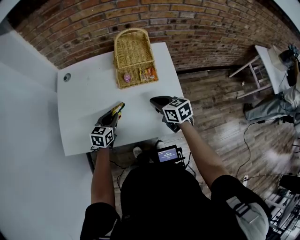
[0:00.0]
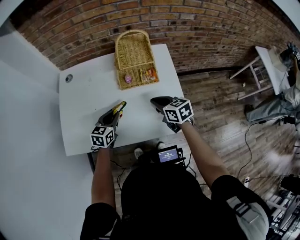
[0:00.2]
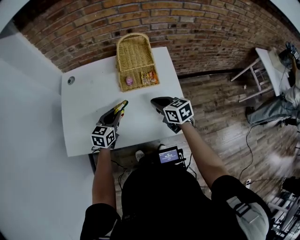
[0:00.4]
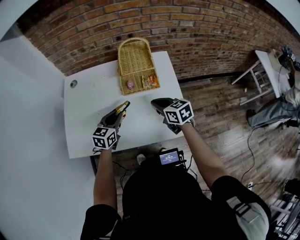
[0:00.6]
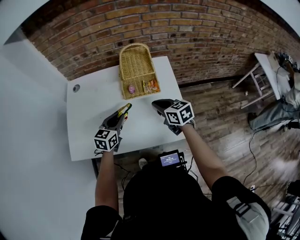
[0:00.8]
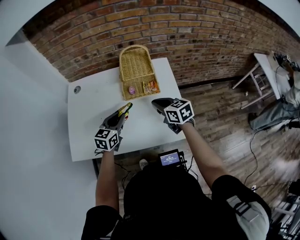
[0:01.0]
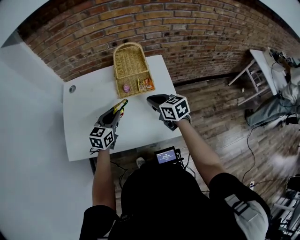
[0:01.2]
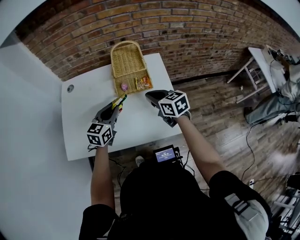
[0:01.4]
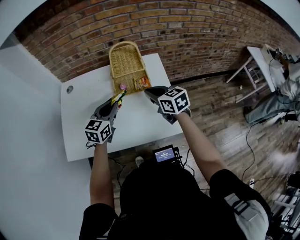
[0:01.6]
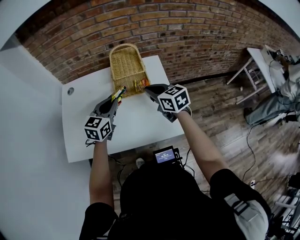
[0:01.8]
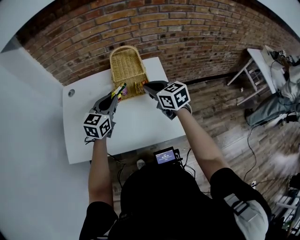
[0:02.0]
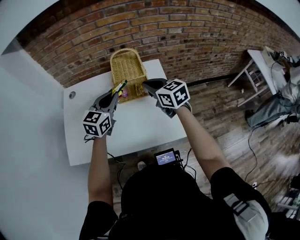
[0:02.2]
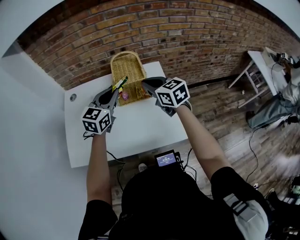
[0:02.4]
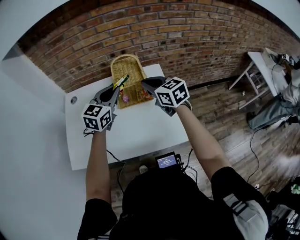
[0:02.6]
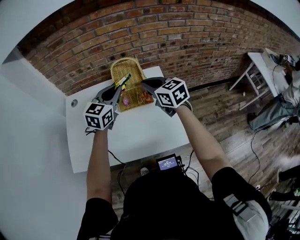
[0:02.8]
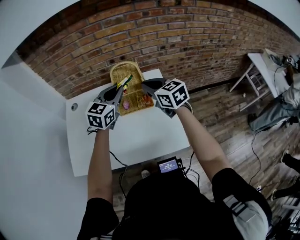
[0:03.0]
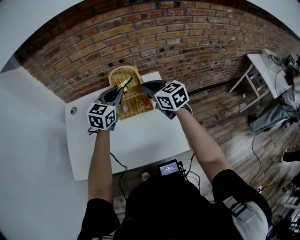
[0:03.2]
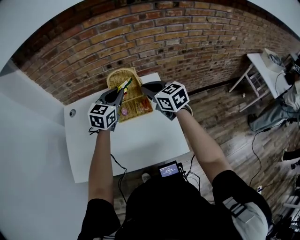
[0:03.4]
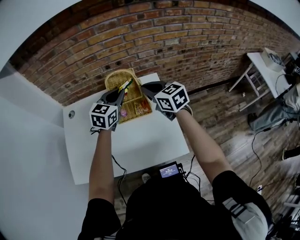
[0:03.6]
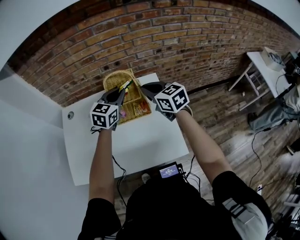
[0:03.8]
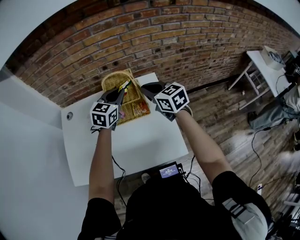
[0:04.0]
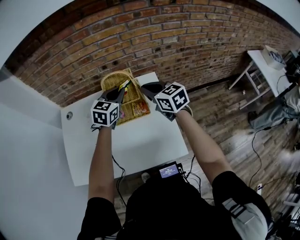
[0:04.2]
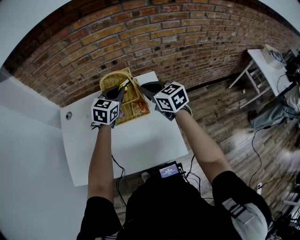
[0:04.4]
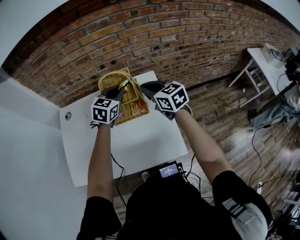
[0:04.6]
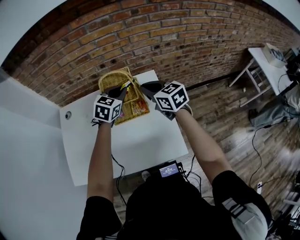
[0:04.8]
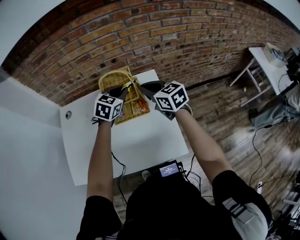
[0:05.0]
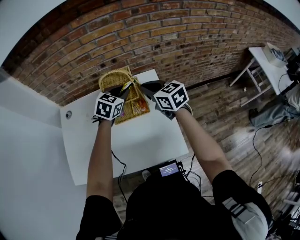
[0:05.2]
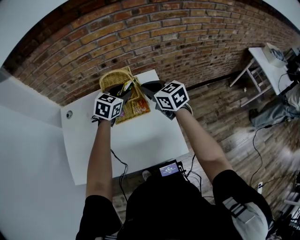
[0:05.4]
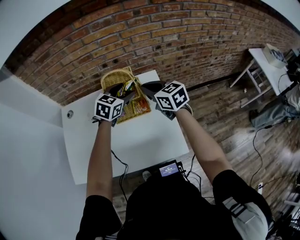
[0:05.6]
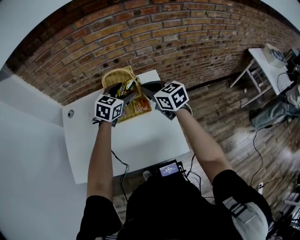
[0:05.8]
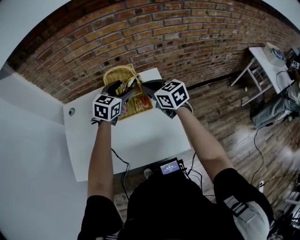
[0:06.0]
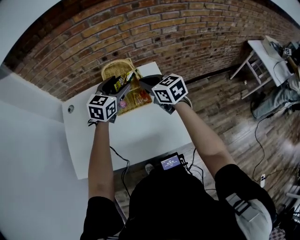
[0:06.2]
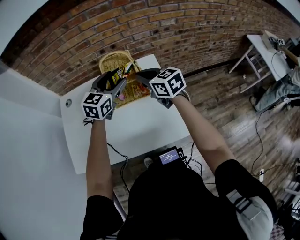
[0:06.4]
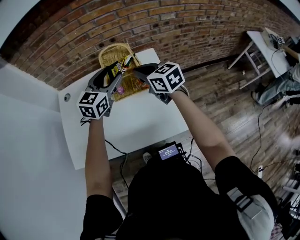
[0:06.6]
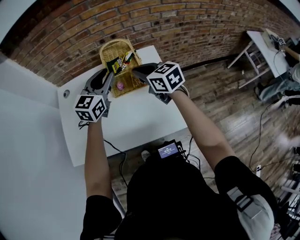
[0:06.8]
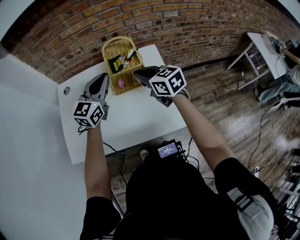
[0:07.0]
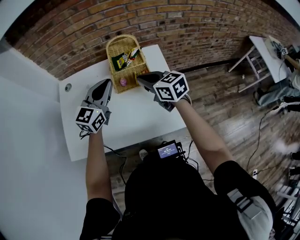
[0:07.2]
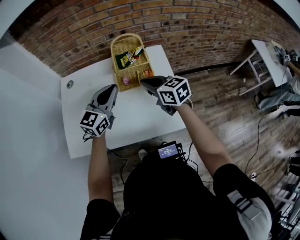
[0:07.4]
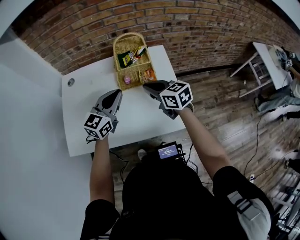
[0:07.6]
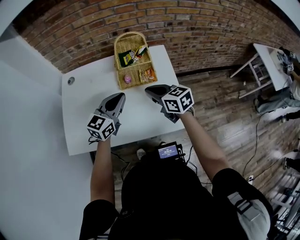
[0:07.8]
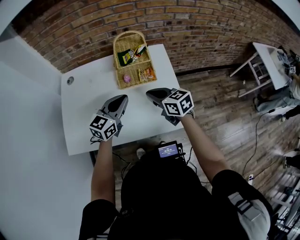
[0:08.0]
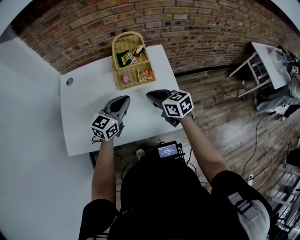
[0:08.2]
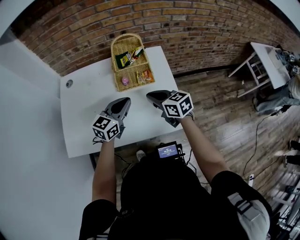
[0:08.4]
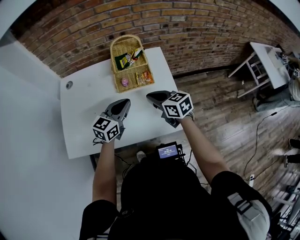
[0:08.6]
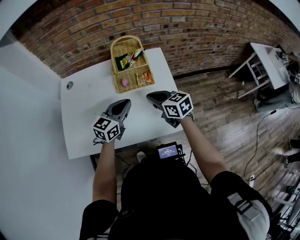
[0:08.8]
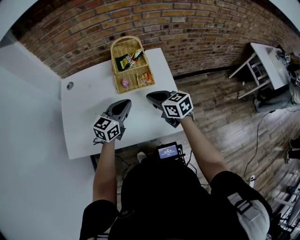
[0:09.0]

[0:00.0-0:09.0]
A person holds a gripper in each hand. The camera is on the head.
0:00.0 to 0:01.6: The left gripper is displaced upward by roughly 15 cm; the right gripper shifts approximately 10 cm upward.
0:01.6 to 0:03.0: The left gripper heads forward, upward and to the right, covering approximately 15 cm. Meanwhile the right gripper goes approximately 10 cm upward and forward.
0:03.0 to 0:04.4: The right gripper moves roughly 5 cm. Meanwhile the left gripper travels forward and downward by roughly 10 cm.
0:04.4 to 0:06.0: The left gripper opens.
0:06.0 to 0:07.6: The left gripper moves backward and to the left, some 20 cm, and closes its fingers; the right gripper goes roughly 15 cm backward, to the left and downward.
0:07.6 to 0:09.0: The left gripper heads downward, covering approximately 5 cm.

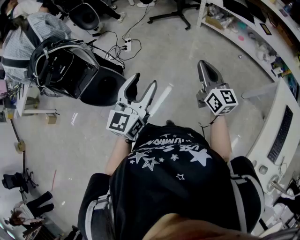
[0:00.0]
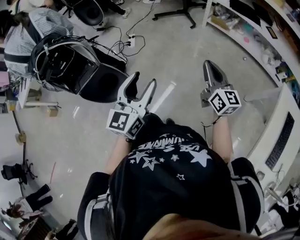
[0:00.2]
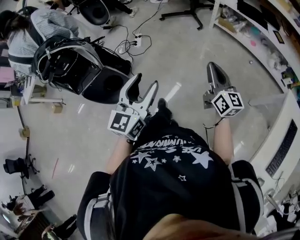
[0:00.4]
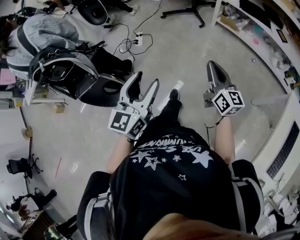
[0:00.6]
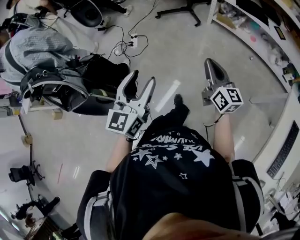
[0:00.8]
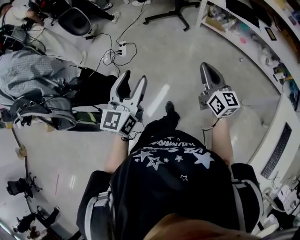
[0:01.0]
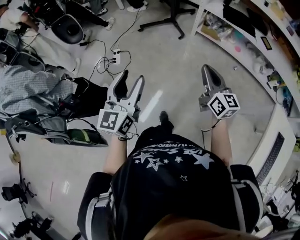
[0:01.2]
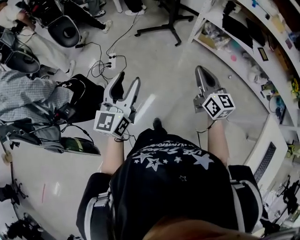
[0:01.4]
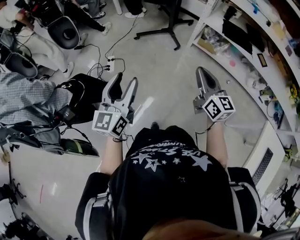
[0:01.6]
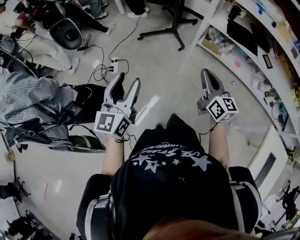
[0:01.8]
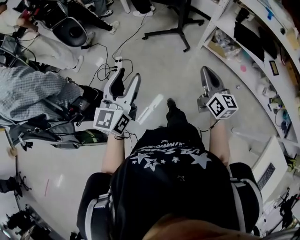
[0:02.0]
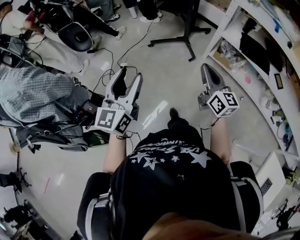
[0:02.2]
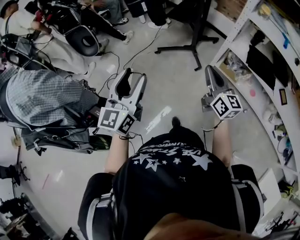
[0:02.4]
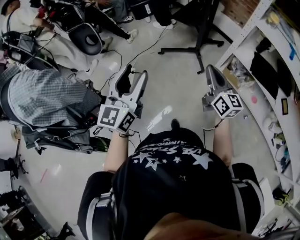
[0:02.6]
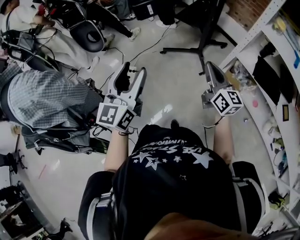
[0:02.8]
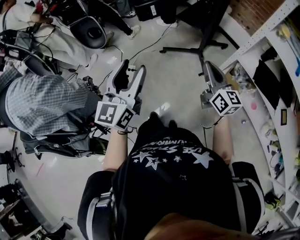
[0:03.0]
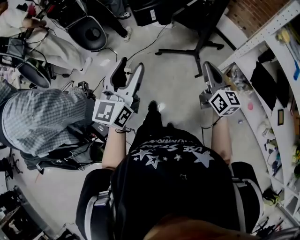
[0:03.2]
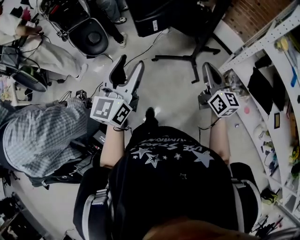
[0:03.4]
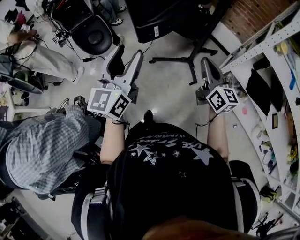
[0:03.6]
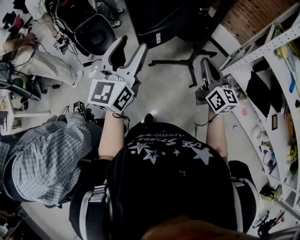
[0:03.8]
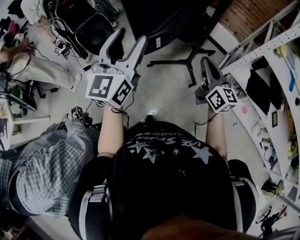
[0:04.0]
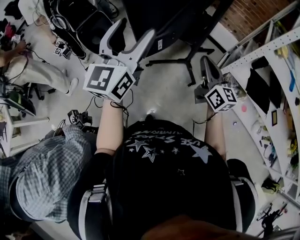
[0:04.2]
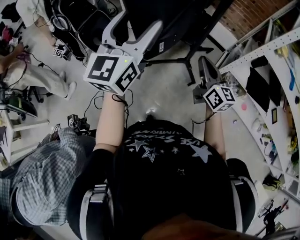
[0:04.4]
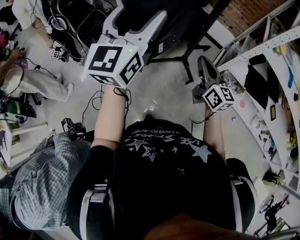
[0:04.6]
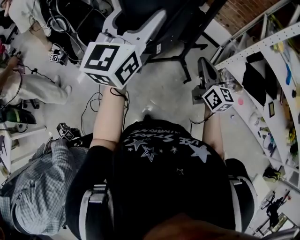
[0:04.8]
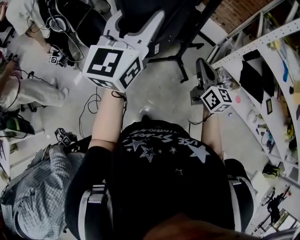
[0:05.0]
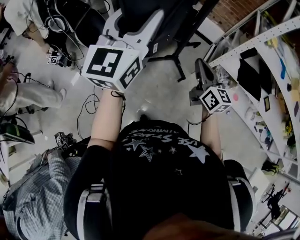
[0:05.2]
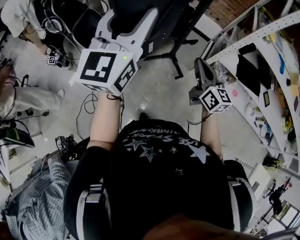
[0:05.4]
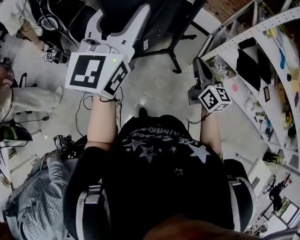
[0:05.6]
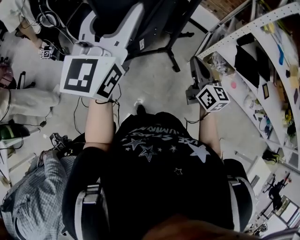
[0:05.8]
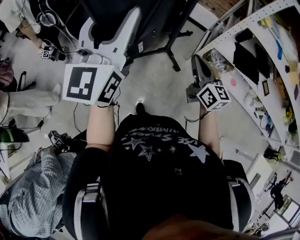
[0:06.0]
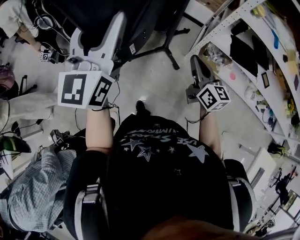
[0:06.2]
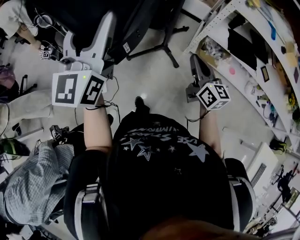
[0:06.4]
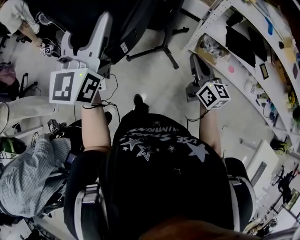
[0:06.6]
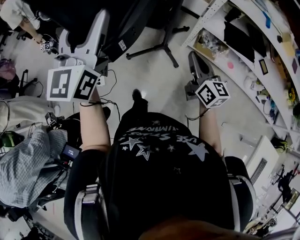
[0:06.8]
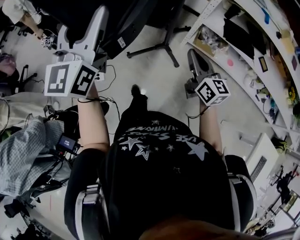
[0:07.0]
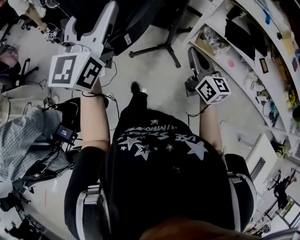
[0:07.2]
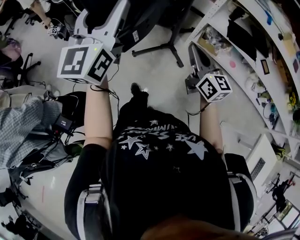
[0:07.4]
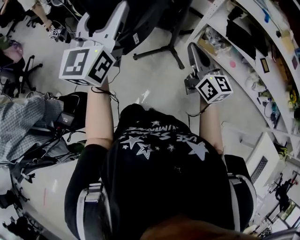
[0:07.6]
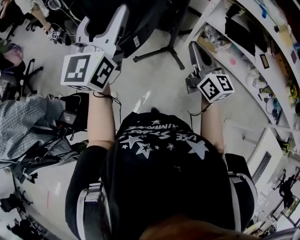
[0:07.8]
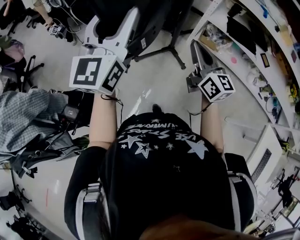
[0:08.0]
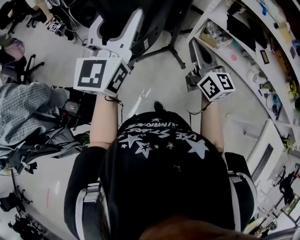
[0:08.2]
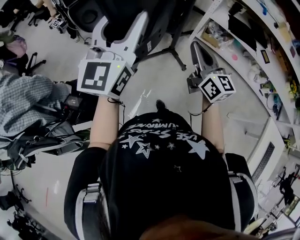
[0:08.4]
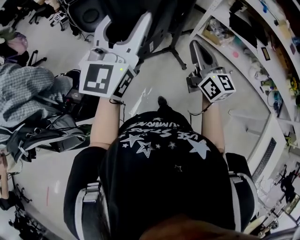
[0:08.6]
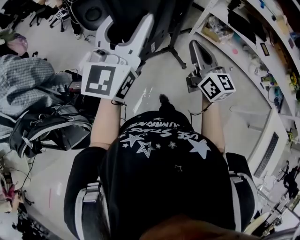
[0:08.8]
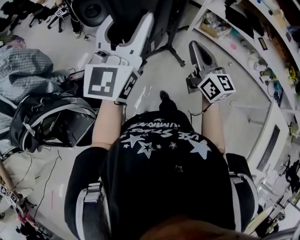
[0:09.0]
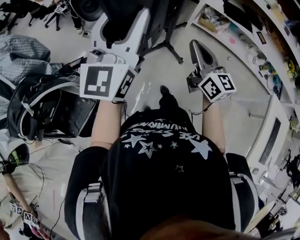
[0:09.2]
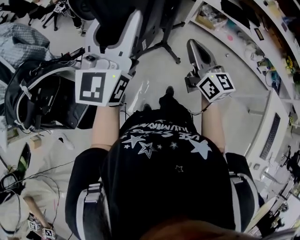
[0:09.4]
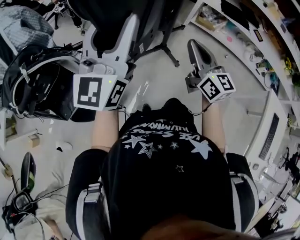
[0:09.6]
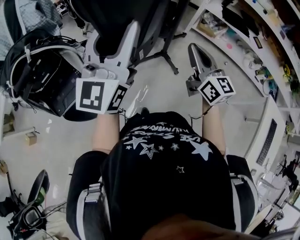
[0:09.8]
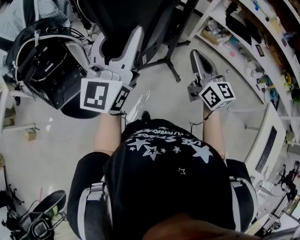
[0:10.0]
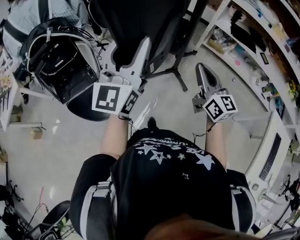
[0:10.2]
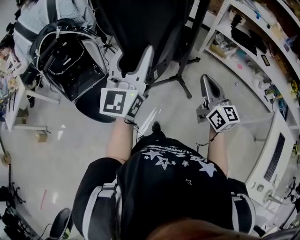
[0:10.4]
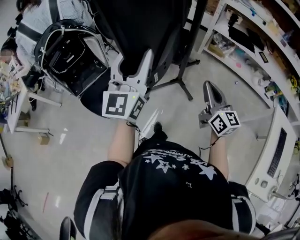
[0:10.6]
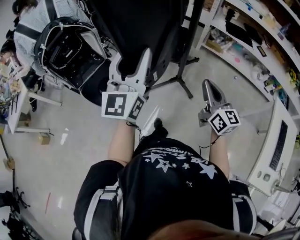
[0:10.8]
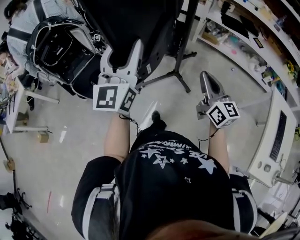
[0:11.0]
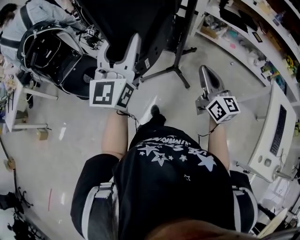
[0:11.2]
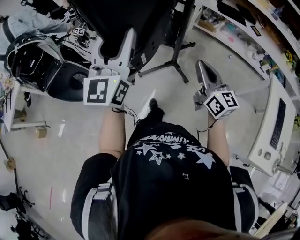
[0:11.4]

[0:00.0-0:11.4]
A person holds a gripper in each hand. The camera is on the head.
0:00.0 to 0:01.4: Both grippers travel together forward, some 30 cm.
0:01.4 to 0:02.8: The grippers both shift forward by roughly 35 cm.
0:02.8 to 0:04.2: Both grippers move forward, some 25 cm.
0:04.2 to 0:05.6: The right gripper shifts by approximately 5 cm; the left gripper closes its fingers.
0:05.6 to 0:07.2: The right gripper is displaced backward and to the right by some 25 cm. The left gripper heads backward, covering some 25 cm.
0:07.2 to 0:08.6: The left gripper is displaced backward by approximately 20 cm, while the right gripper is displaced backward and to the left by about 20 cm.
0:08.6 to 0:10.0: The right gripper heads backward, covering about 15 cm, while the left gripper moves backward and to the left, roughly 20 cm.
0:10.0 to 0:11.4: The grippers both shift backward by some 20 cm.

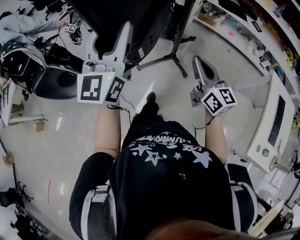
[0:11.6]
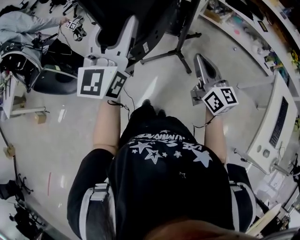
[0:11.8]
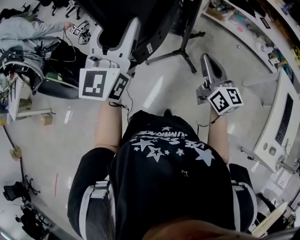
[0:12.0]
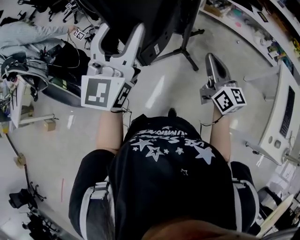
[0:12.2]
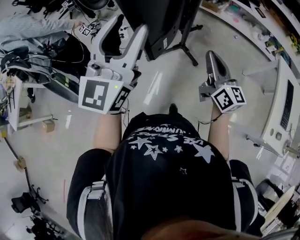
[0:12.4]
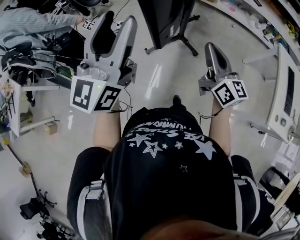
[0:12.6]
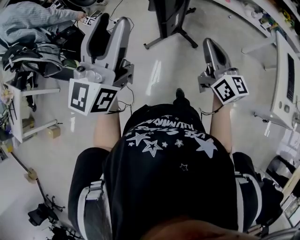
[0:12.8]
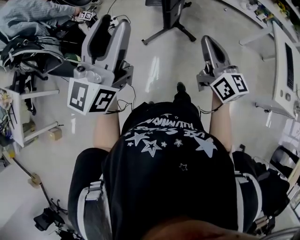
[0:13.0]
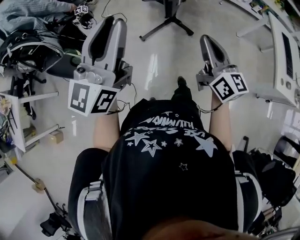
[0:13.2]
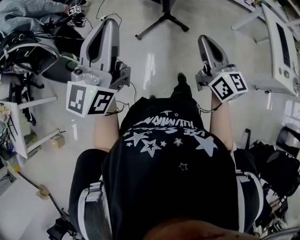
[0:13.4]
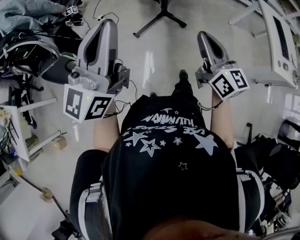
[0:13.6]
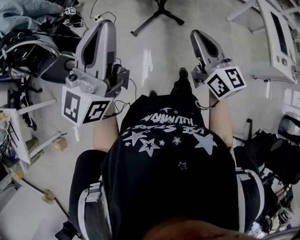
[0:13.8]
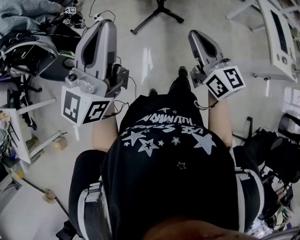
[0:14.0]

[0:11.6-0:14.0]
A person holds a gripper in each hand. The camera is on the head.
0:11.6 to 0:12.8: The right gripper shifts about 15 cm backward and to the left, while the left gripper travels to the left and backward by approximately 15 cm, and rotates roughly 20 degrees.
0:12.8 to 0:14.0: The left gripper travels backward by approximately 10 cm, and closes; the right gripper moves backward and to the left, roughly 15 cm.

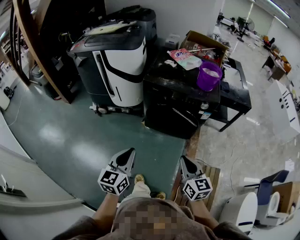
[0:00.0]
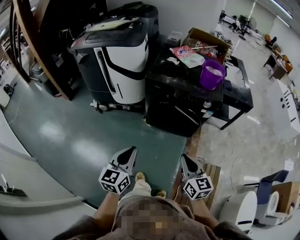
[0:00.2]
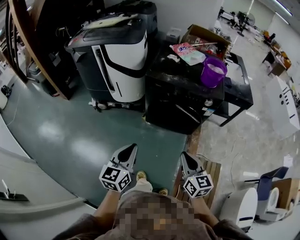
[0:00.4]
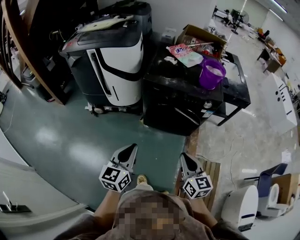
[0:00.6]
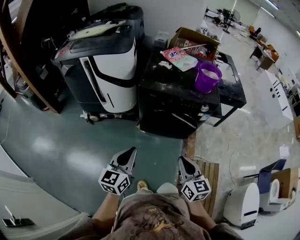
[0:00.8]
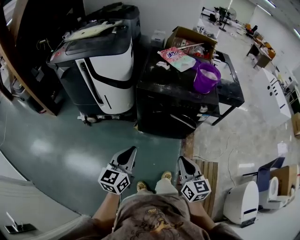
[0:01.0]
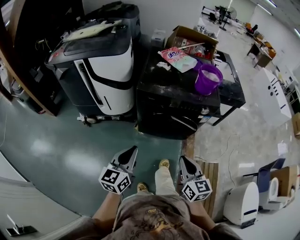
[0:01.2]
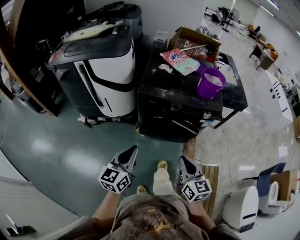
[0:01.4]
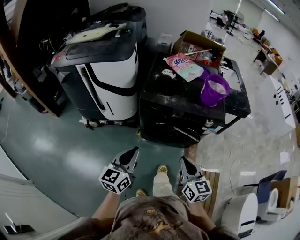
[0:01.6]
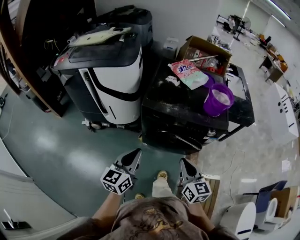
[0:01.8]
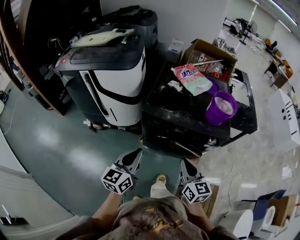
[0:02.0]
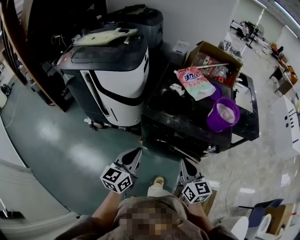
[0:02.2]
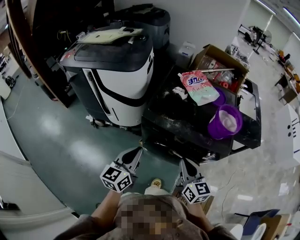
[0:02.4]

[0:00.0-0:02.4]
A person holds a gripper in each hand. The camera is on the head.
0:00.0 to 0:01.2: The right gripper is displaced forward and to the left by roughly 10 cm, while the left gripper travels forward by some 15 cm.
0:01.2 to 0:02.4: Both grippers travel together forward, roughly 20 cm.
